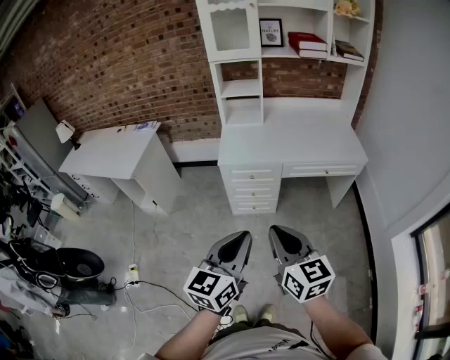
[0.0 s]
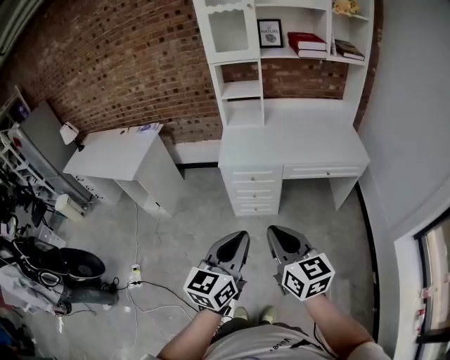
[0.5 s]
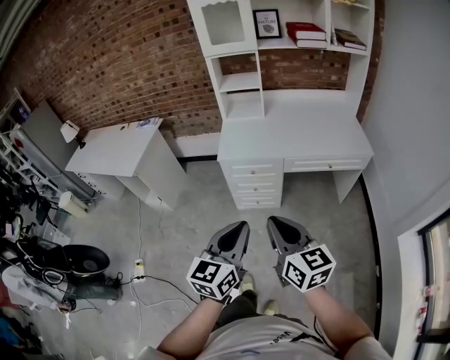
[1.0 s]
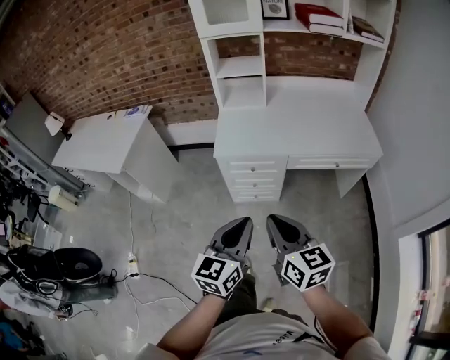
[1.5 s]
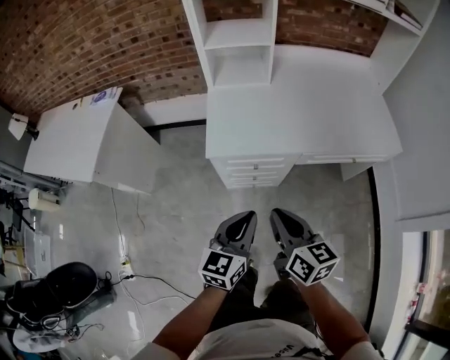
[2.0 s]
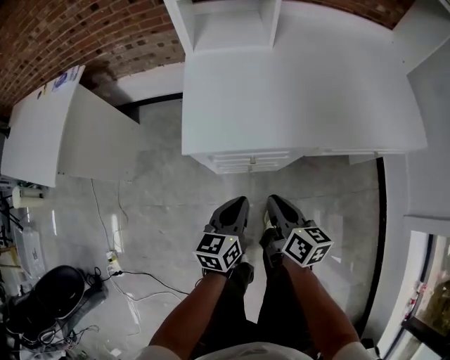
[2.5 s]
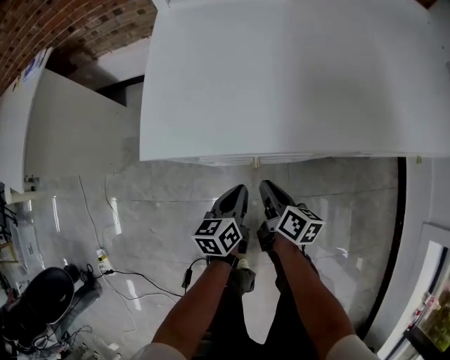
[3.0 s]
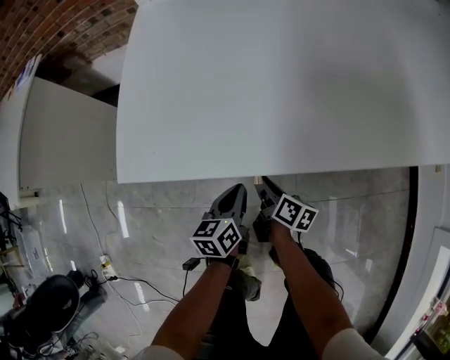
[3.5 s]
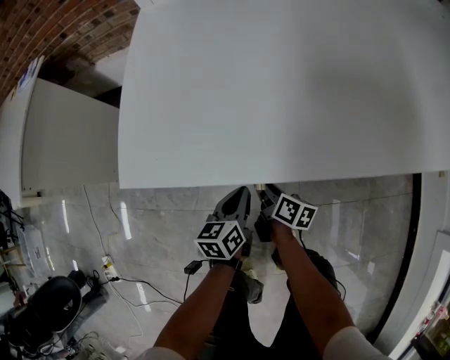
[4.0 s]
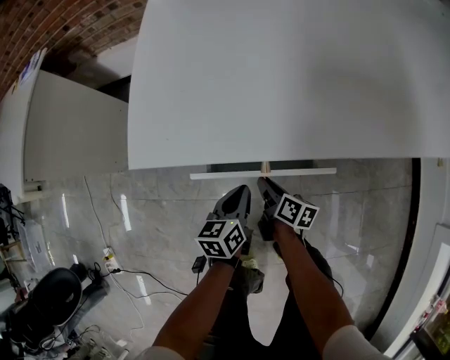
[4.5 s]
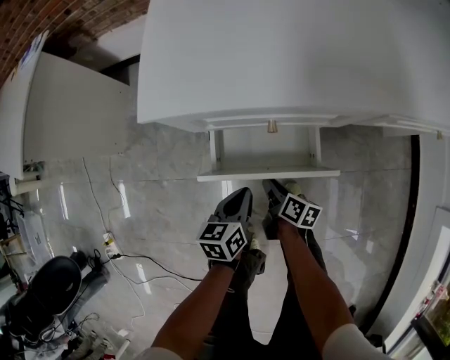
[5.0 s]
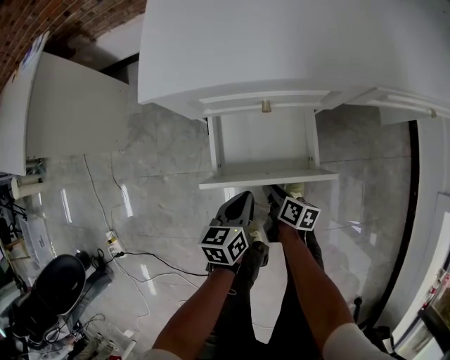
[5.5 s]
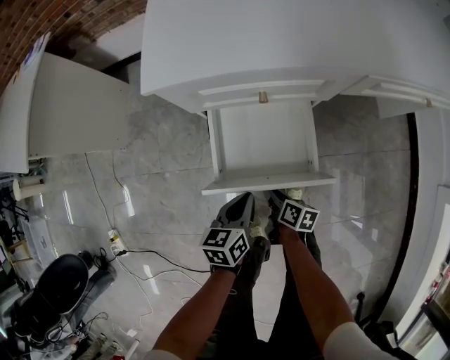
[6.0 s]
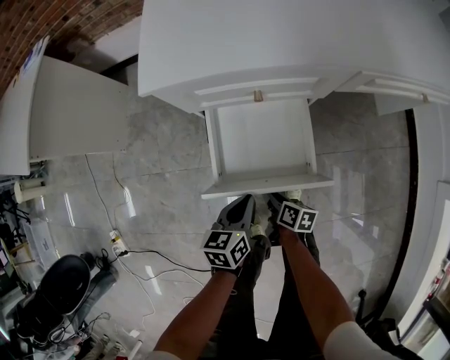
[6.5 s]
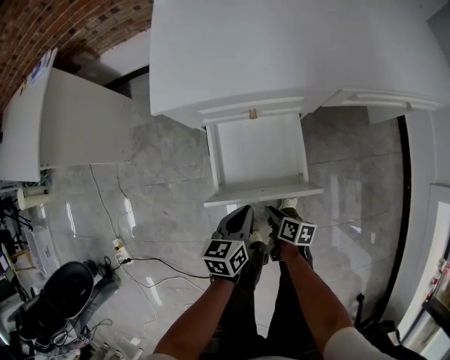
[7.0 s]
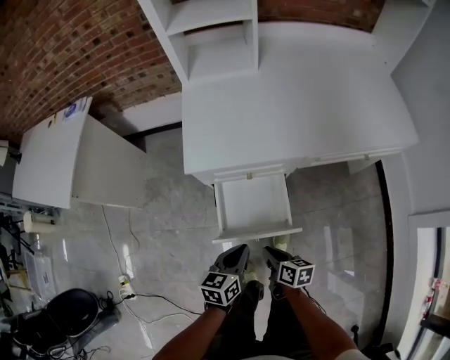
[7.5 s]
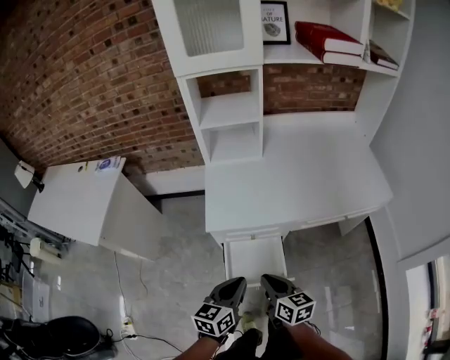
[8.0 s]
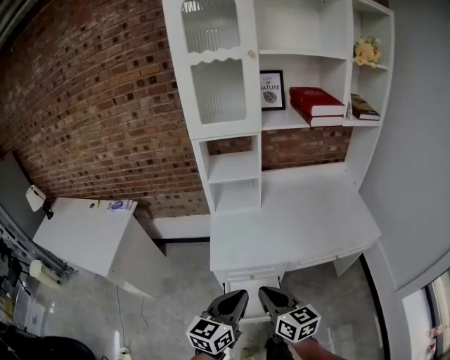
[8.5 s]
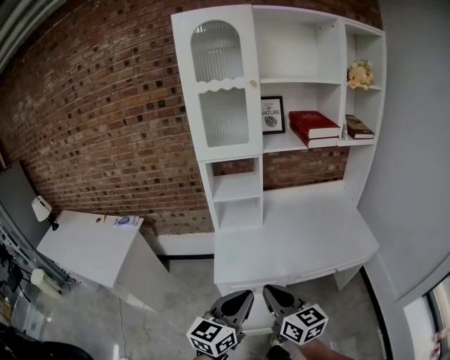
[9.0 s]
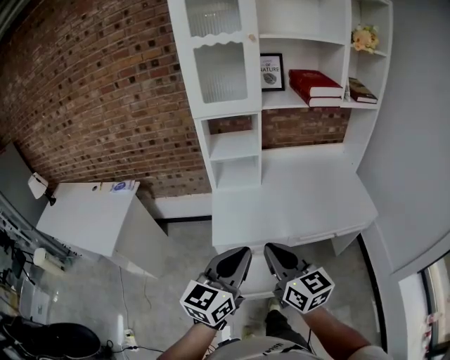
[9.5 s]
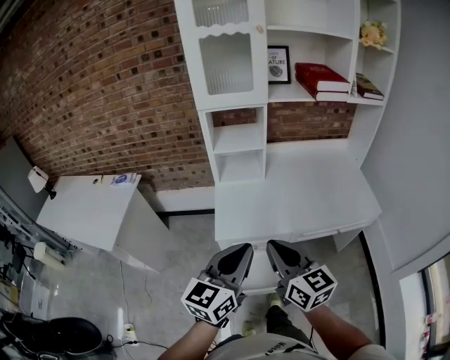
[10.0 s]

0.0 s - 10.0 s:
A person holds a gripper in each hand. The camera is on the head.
0.0 s - 2.0 s: The grippers both shift forward and downward by about 40 cm. The right gripper turns by roughly 20 degrees.
2.0 s - 4.0 s: The grippers both shift downward and forward by roughly 60 cm. The right gripper swivels about 40 degrees, while the left gripper swivels some 30 degrees.
4.0 s - 6.0 s: Both grippers travel together backward, about 20 cm.
6.0 s - 8.0 s: The two grippers go some 50 cm upward. The left gripper turns by approximately 20 degrees. Meanwhile the right gripper rotates about 40 degrees.
8.0 s - 10.0 s: Both grippers move upward, some 30 cm. The left gripper changes its angle by about 30 degrees. Meanwhile the right gripper changes its angle by approximately 30 degrees.

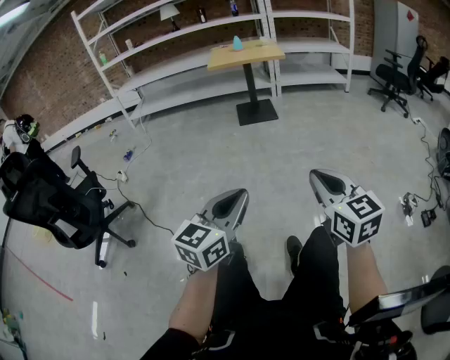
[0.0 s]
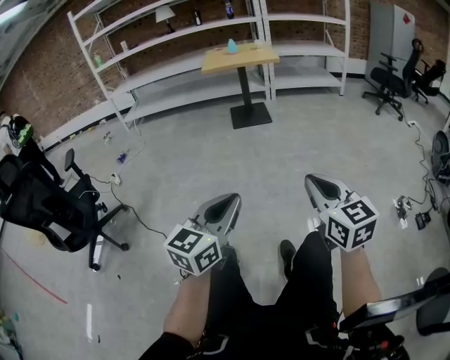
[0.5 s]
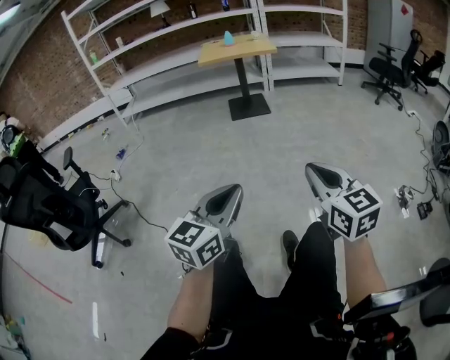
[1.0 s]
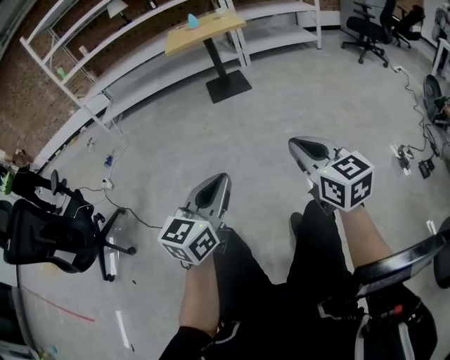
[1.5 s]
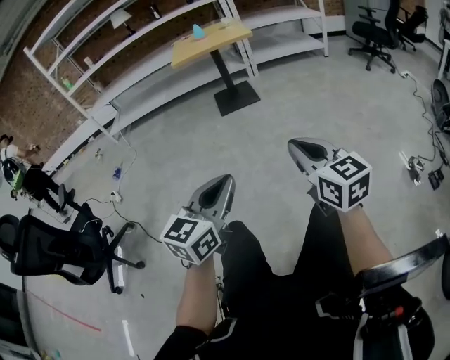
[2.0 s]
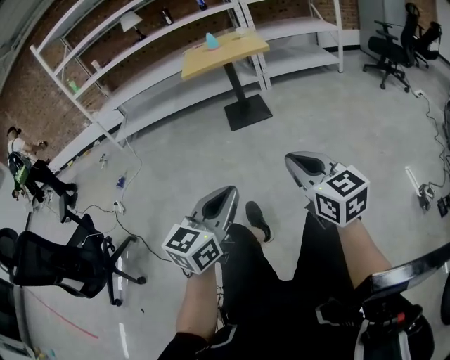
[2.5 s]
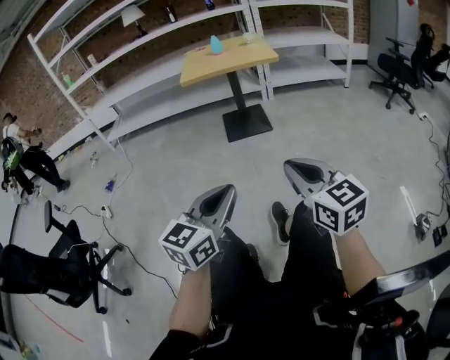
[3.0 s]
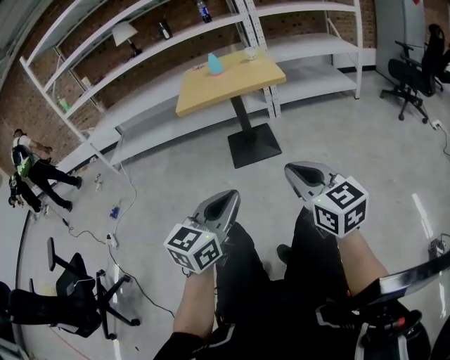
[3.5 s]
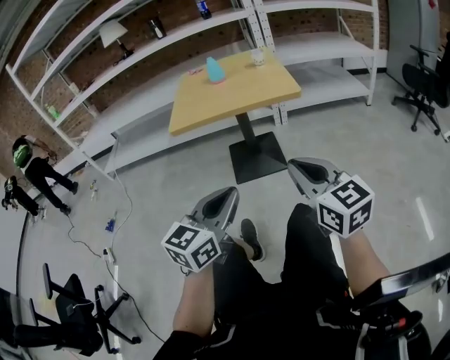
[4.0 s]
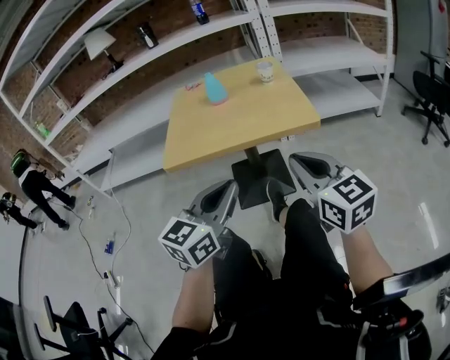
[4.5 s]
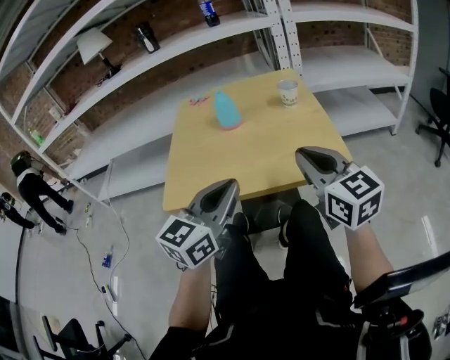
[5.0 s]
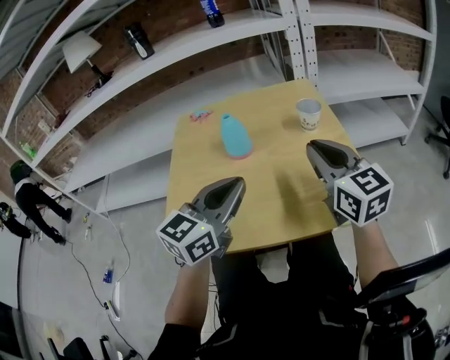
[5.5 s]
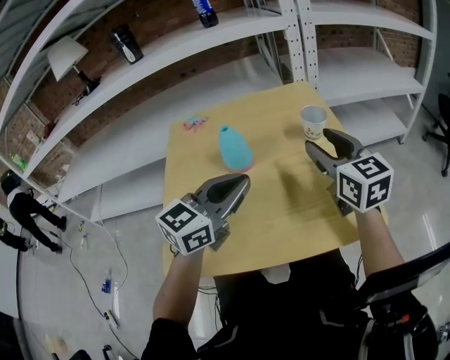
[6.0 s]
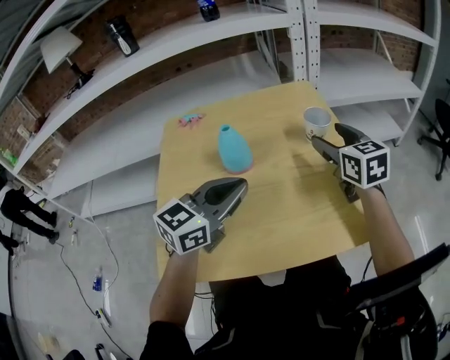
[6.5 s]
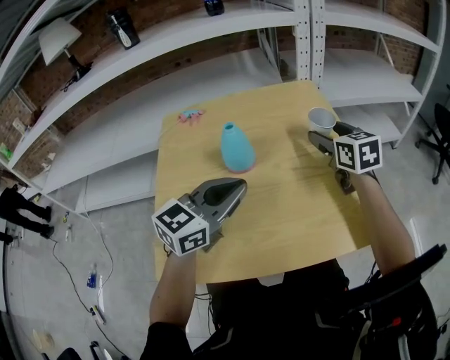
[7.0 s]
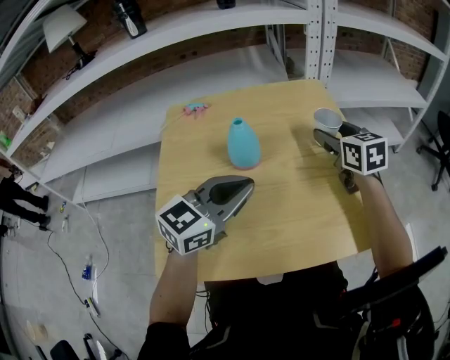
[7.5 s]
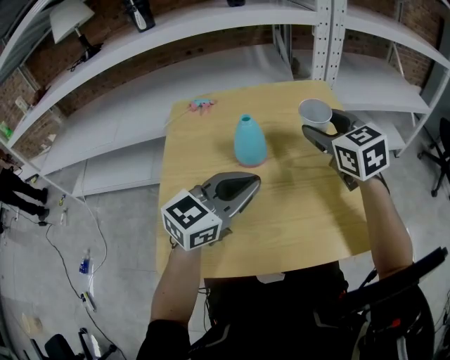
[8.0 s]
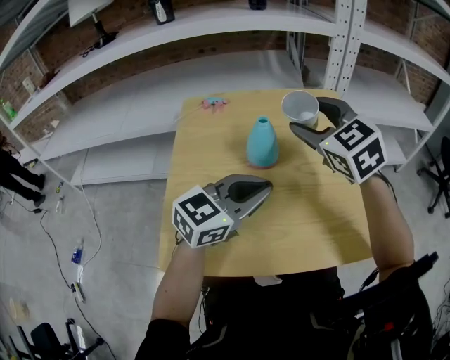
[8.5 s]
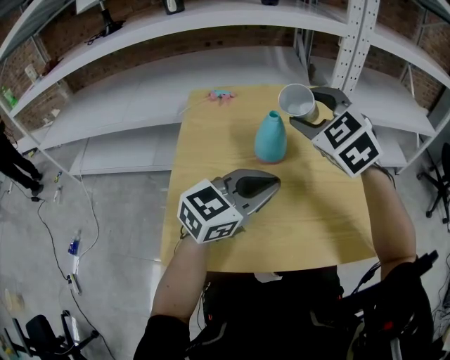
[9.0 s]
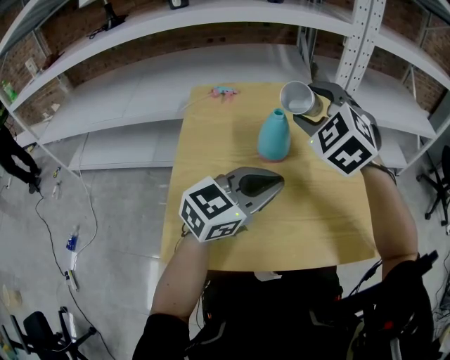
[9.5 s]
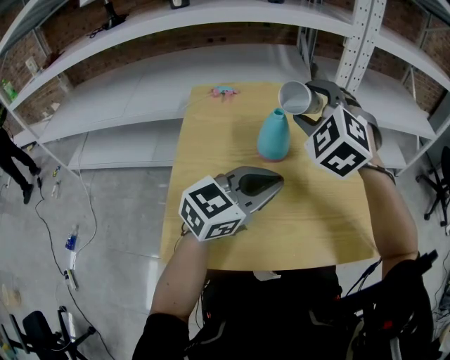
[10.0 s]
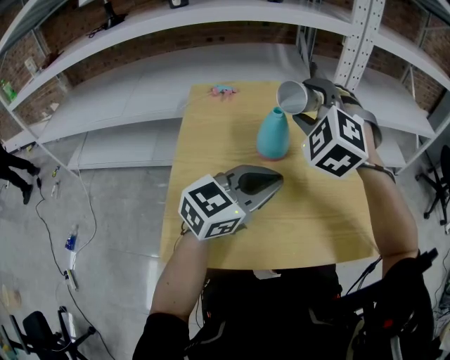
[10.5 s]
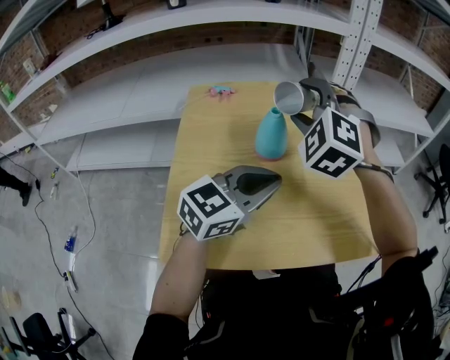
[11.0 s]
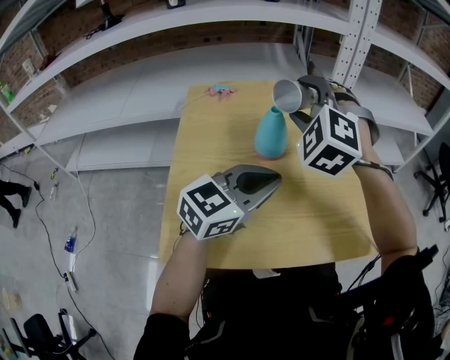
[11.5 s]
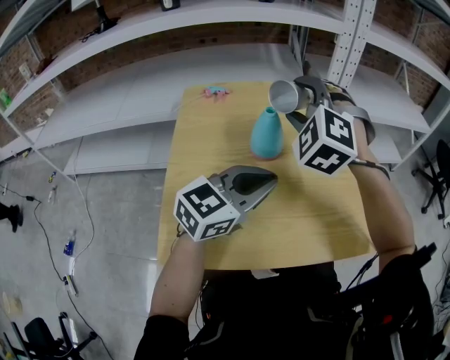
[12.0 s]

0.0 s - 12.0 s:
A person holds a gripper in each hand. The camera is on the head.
0.0 s - 2.0 s: Both grippers move forward, about 15 cm.
2.0 s - 4.0 s: Both grippers are carried forward, about 60 cm.
4.0 s - 6.0 s: The pair of grippers is taken forward, approximately 60 cm. The right gripper opens.
6.0 s - 8.0 s: The right gripper shifts some 10 cm to the left and forward.
8.0 s - 10.0 s: The right gripper goes roughly 10 cm to the left, and rotates around the line of its fingers by roughly 50 degrees, counterclockwise from behind.
10.0 s - 12.0 s: The grippers move only a little.

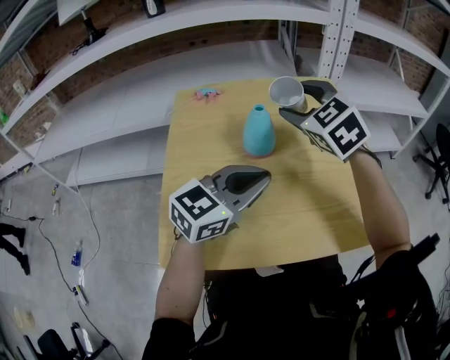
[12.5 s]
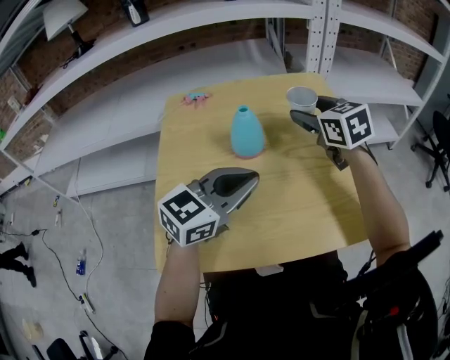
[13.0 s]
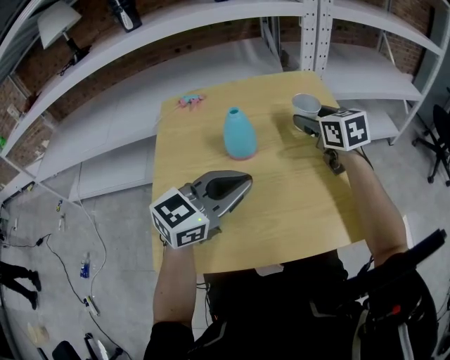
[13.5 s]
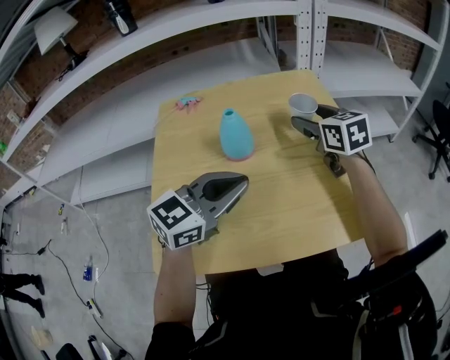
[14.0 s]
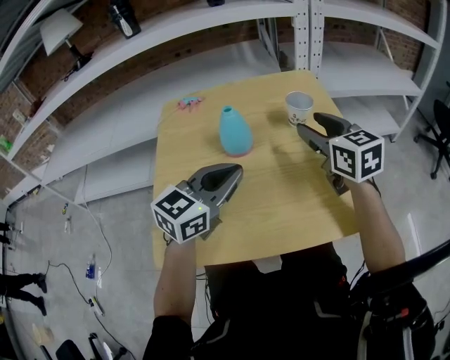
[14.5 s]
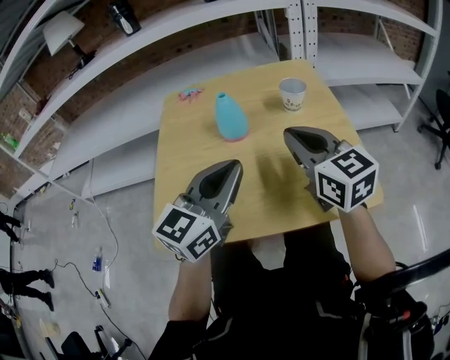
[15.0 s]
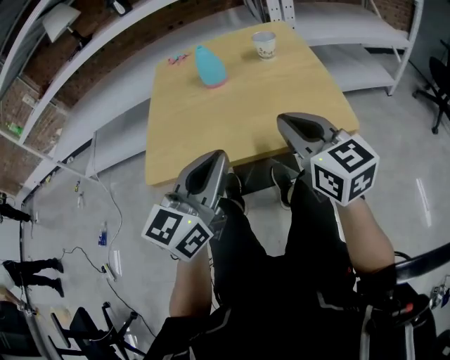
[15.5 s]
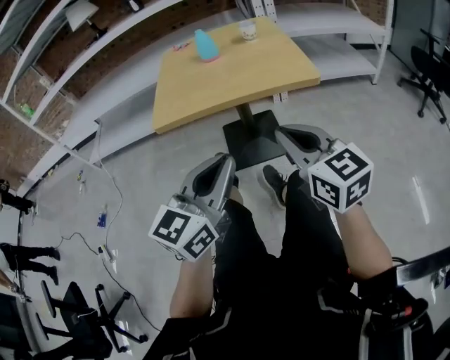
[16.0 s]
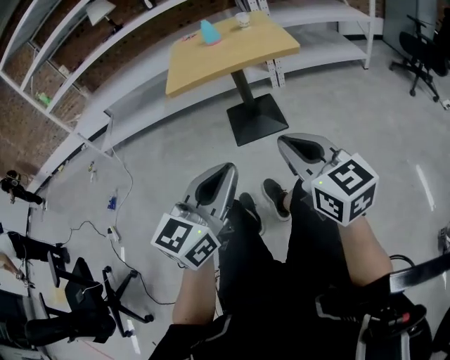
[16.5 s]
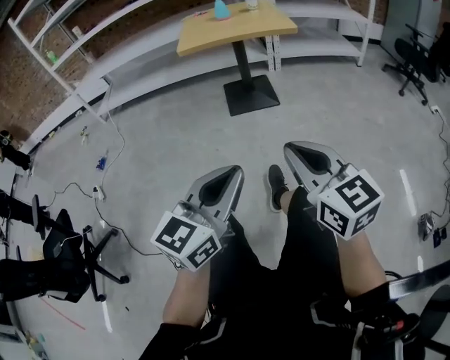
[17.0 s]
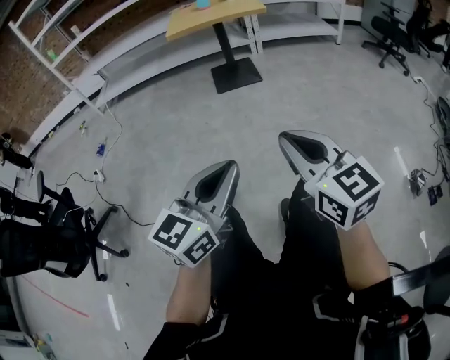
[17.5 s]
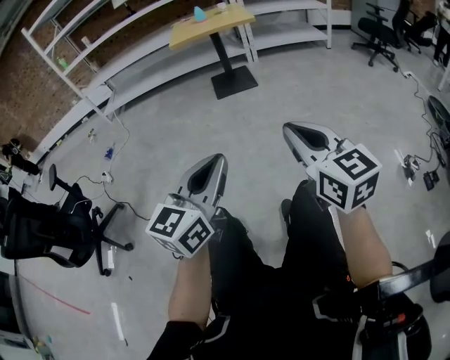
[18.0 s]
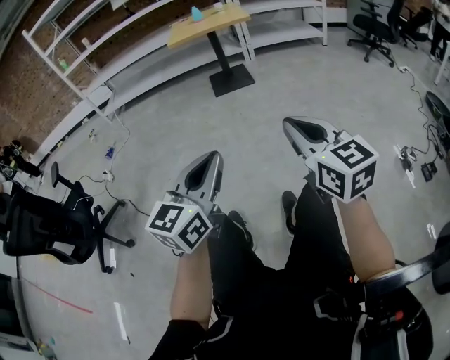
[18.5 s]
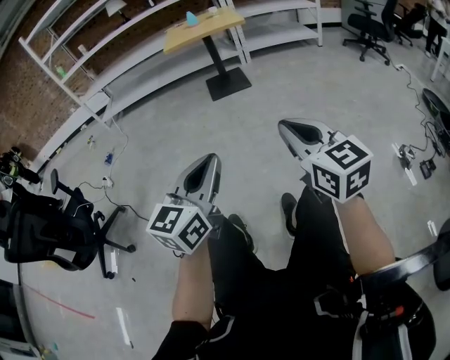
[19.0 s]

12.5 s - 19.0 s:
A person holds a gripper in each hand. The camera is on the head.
12.5 s - 14.5 s: The right gripper travels to the right by roughly 15 cm, and rotates approximately 40 degrees.
14.5 s - 17.0 s: The two grippers travel together, backward, about 90 cm. The right gripper closes its fingers.
17.0 s - 19.0 s: The two grippers go some 35 cm backward.
